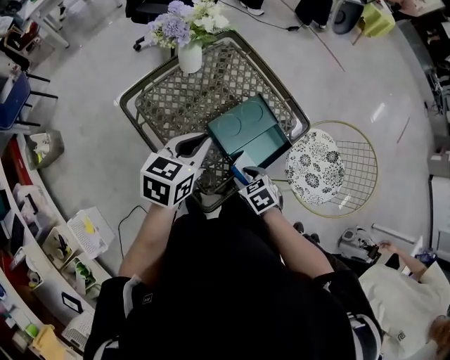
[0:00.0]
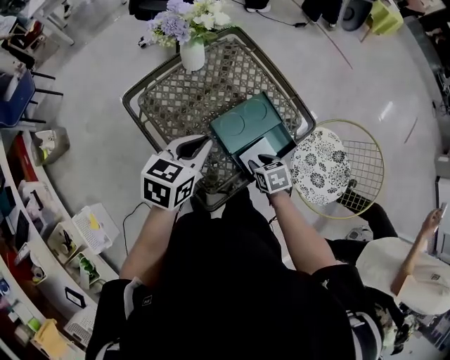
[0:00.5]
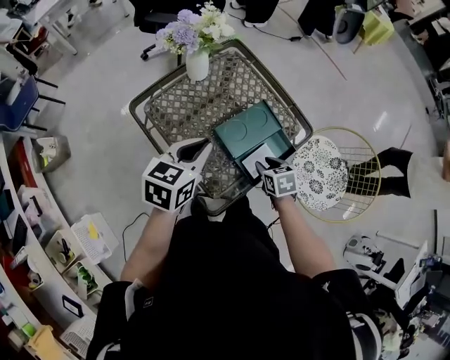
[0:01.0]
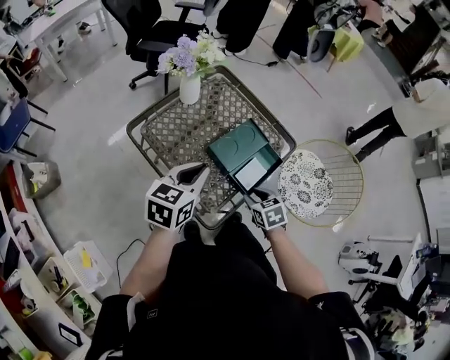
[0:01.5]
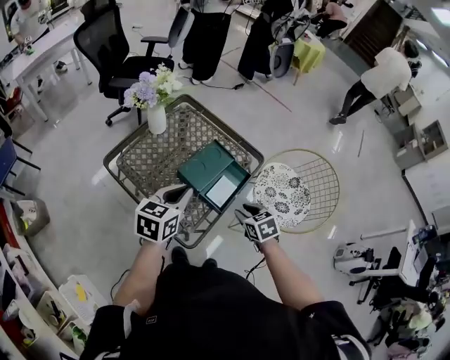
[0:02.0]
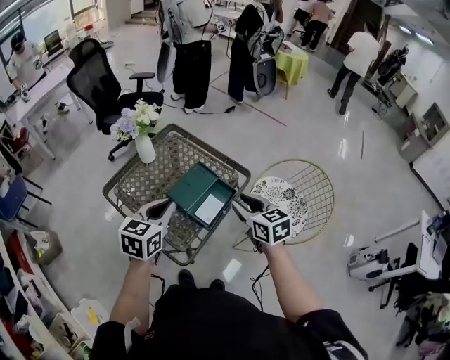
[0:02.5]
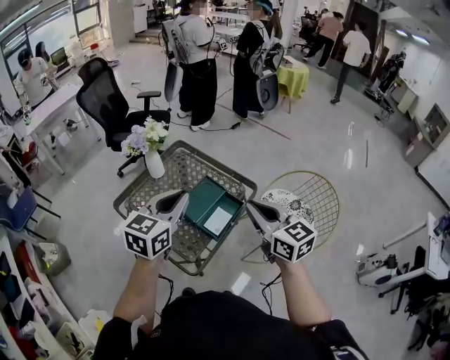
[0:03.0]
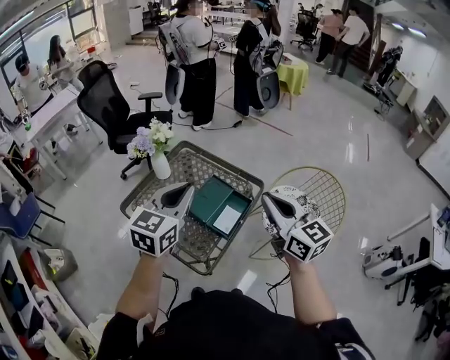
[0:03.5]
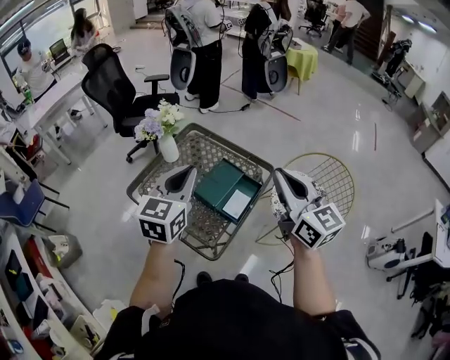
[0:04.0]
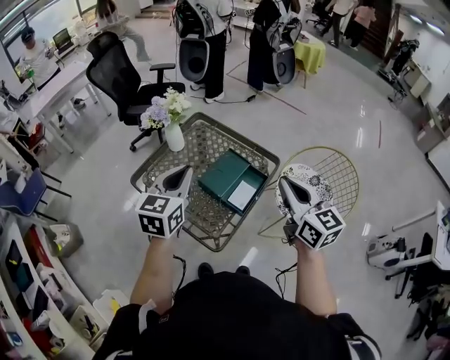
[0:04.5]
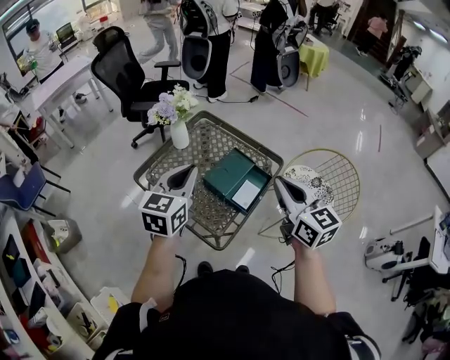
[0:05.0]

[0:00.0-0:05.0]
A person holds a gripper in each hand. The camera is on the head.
0:00.0 to 0:02.5: The left gripper shifts some 10 cm backward, upward and to the right, while the right gripper goes roughly 25 cm upward and to the right, and tilts its fingers about 40 degrees upward.
0:02.5 to 0:05.0: The left gripper goes some 10 cm to the left and upward. The right gripper travels upward and to the left by about 15 cm, turns by about 20 degrees, and closes up.

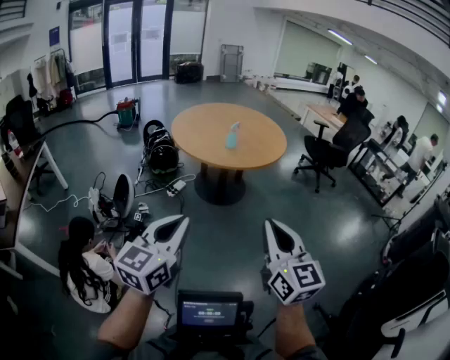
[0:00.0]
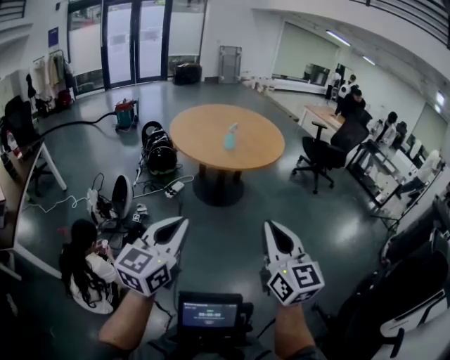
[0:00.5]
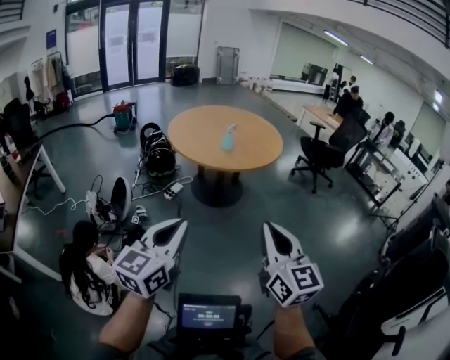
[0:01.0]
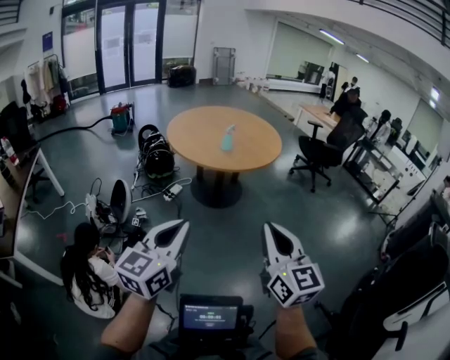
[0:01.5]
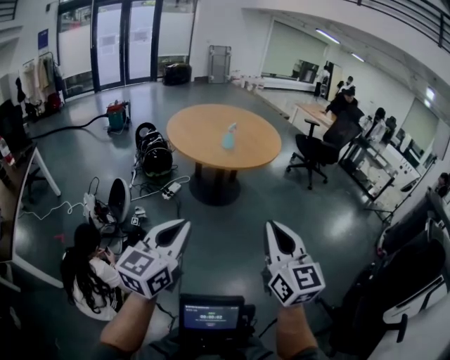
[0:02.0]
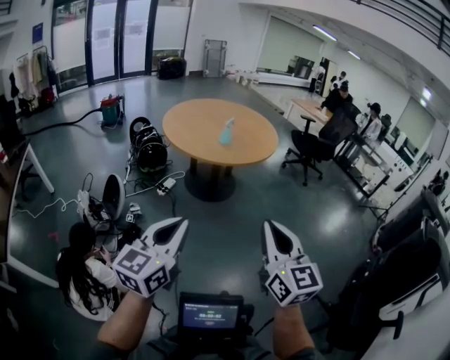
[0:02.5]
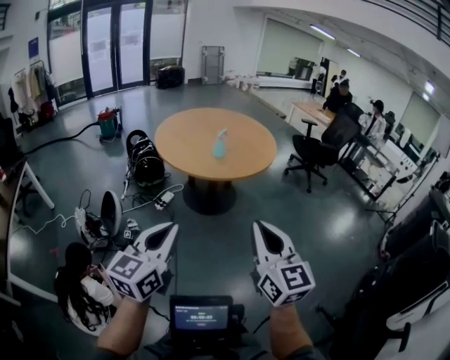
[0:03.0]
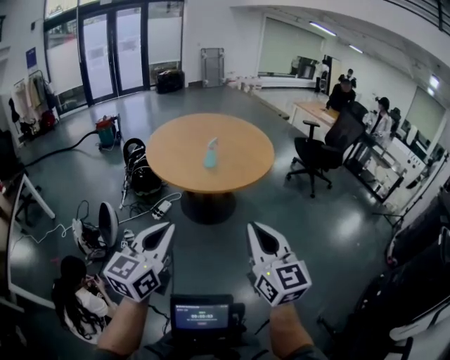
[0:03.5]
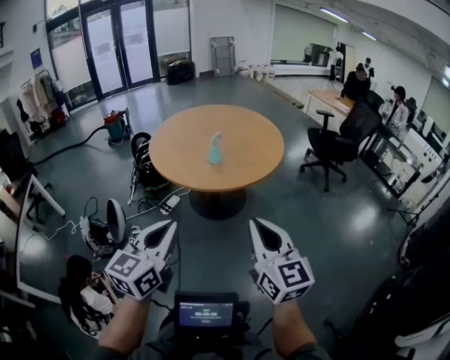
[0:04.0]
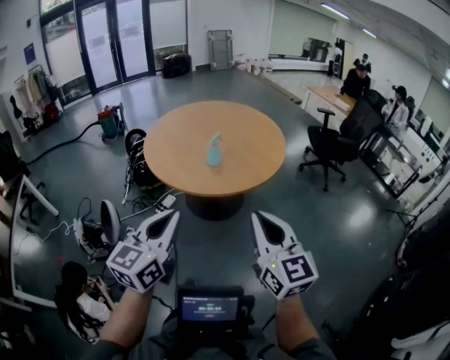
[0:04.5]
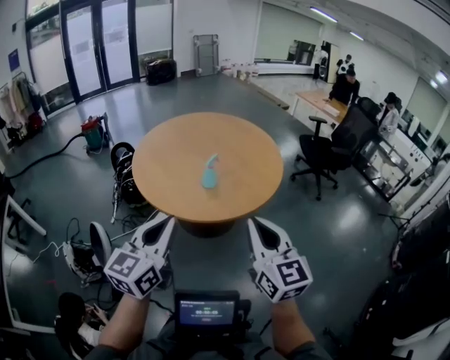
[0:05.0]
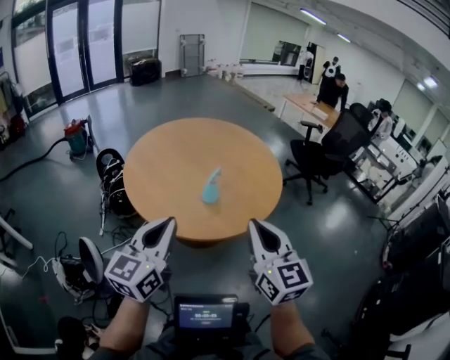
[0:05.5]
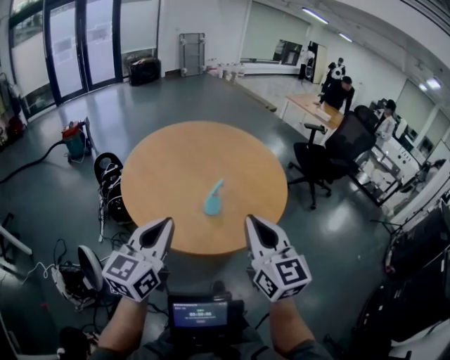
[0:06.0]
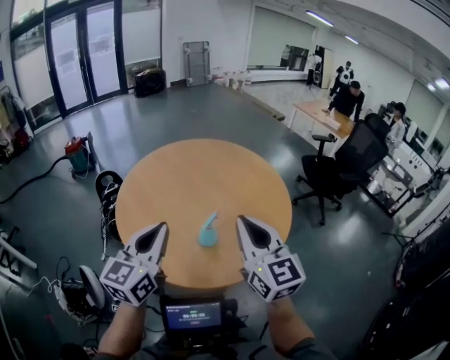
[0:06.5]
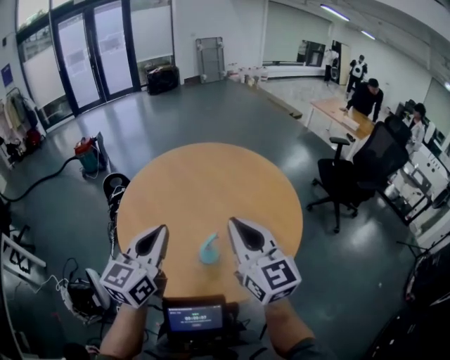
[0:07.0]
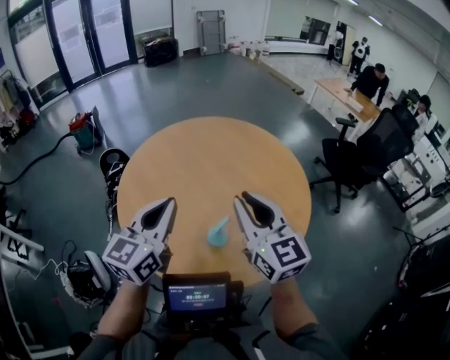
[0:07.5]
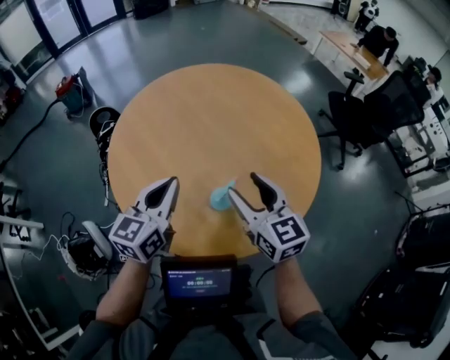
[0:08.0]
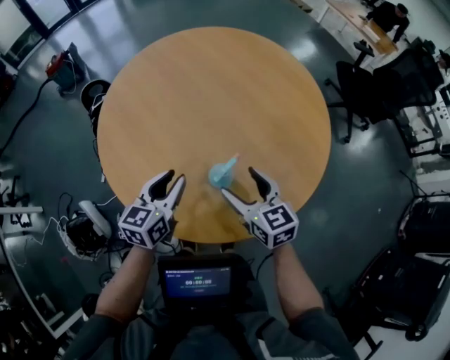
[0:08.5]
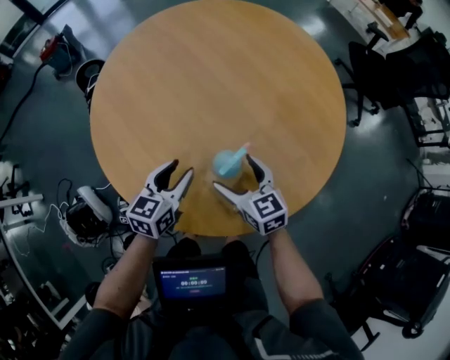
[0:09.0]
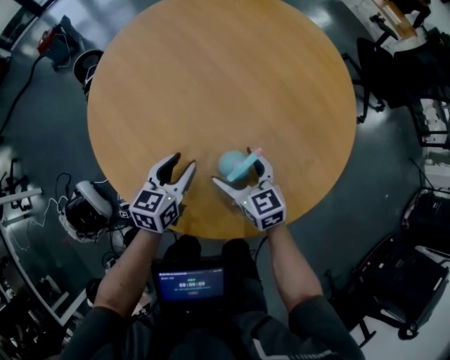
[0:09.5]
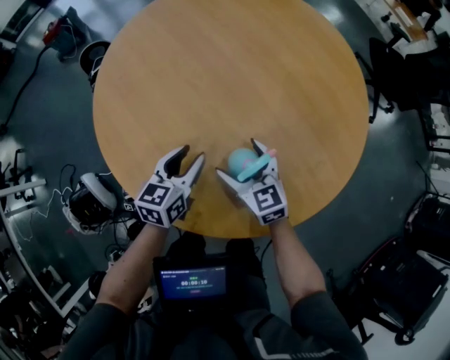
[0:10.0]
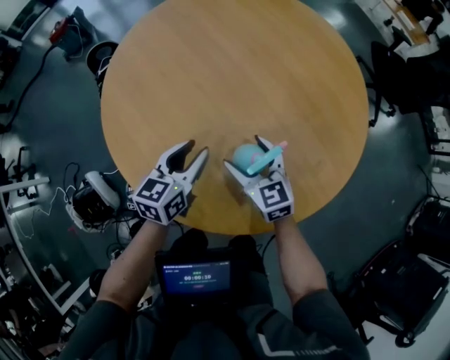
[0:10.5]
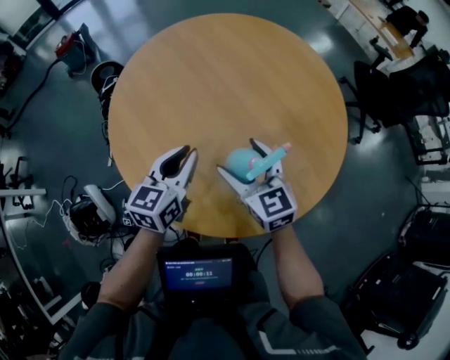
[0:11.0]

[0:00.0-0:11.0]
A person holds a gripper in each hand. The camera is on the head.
0:00.0 to 0:02.0: The grippers make only small movements.
0:02.0 to 0:03.5: The two grippers go roughly 20 cm forward.
0:03.5 to 0:05.5: Both grippers travel together forward, about 35 cm.
0:05.5 to 0:07.5: Both grippers move forward, approximately 30 cm.
0:07.5 to 0:09.0: Both grippers travel together downward, some 30 cm. The right gripper changes its angle by about 30 degrees, and opens up. The left gripper turns by approximately 30 degrees, and opens.
0:09.0 to 0:11.0: The two grippers go about 10 cm upward. The left gripper closes.

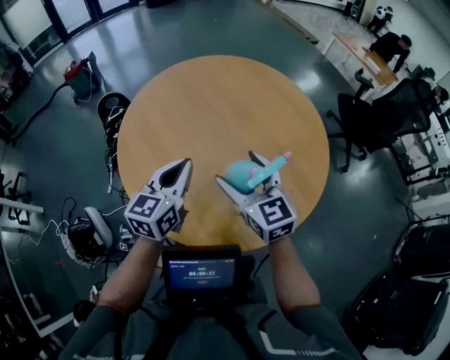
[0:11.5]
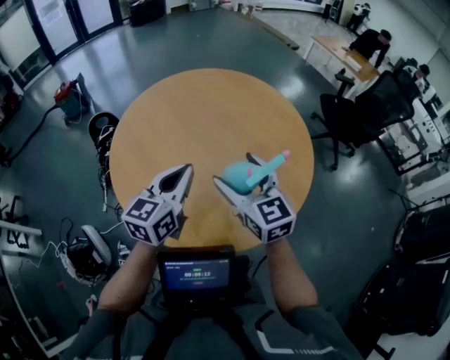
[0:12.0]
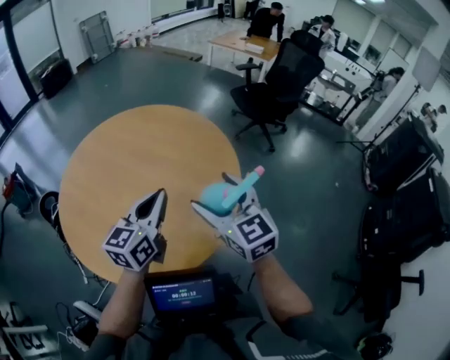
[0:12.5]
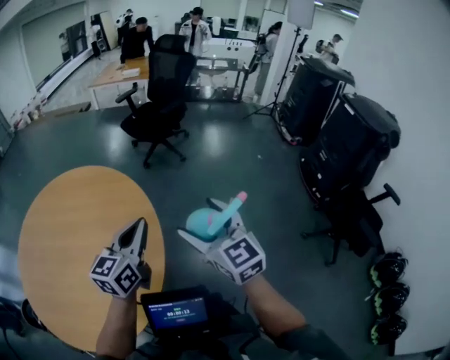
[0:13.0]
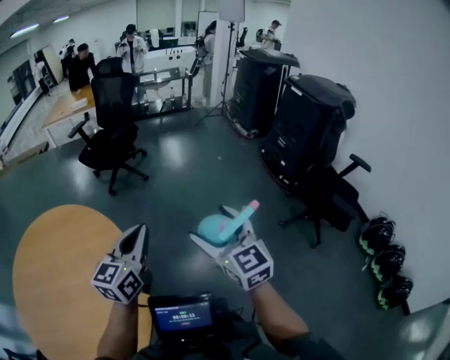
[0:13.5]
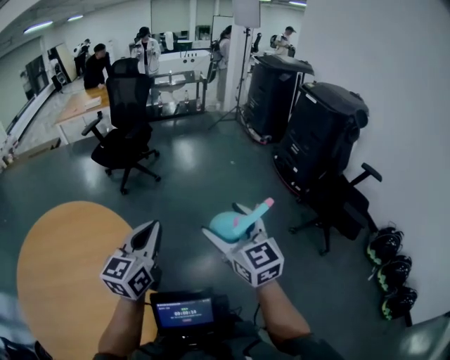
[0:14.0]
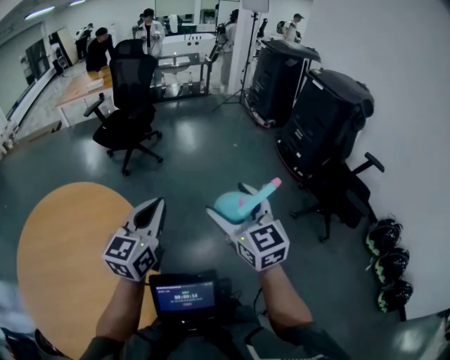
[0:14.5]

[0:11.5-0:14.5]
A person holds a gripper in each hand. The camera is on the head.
0:11.5 to 0:13.0: The left gripper shifts by roughly 40 cm, and swivels some 50 degrees, while the right gripper ends up about 40 cm from where it was, and rotates about 50 degrees.
0:13.0 to 0:14.5: The right gripper goes approximately 15 cm to the right, and rotates approximately 20 degrees. Meanwhile the left gripper travels to the right and forward by roughly 10 cm.

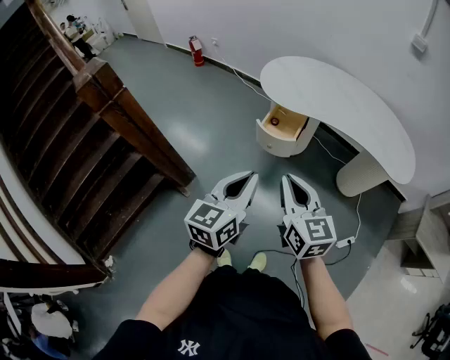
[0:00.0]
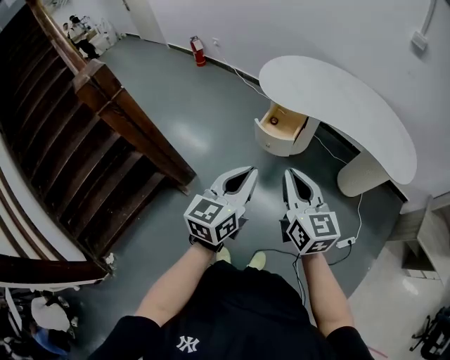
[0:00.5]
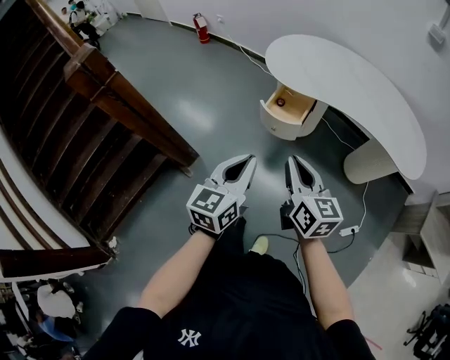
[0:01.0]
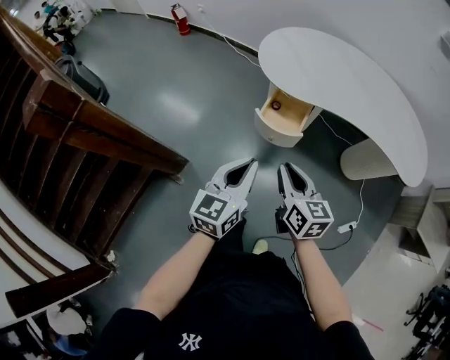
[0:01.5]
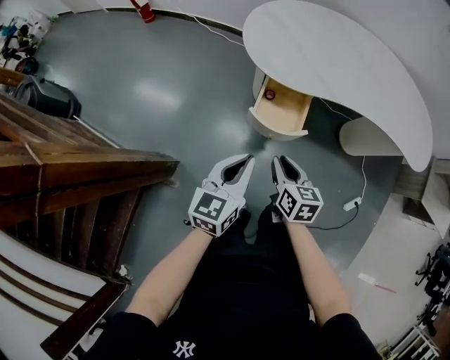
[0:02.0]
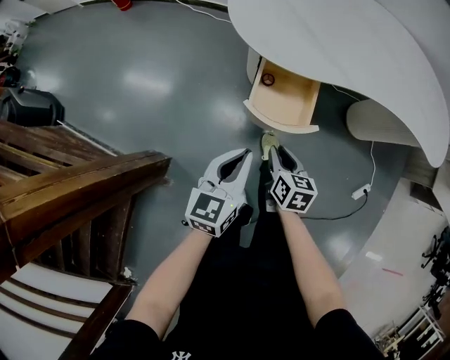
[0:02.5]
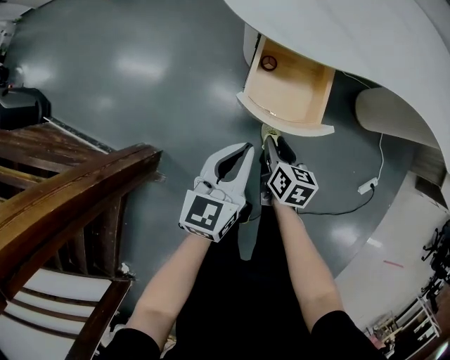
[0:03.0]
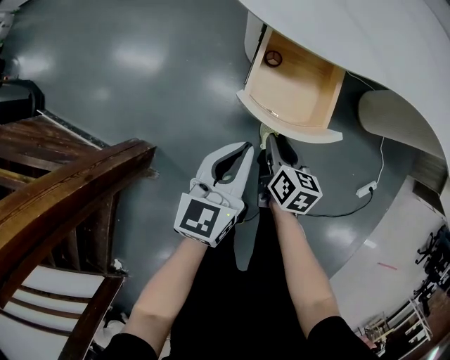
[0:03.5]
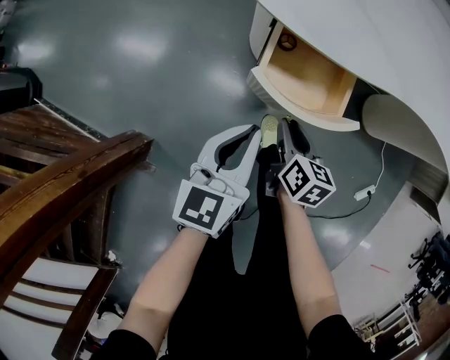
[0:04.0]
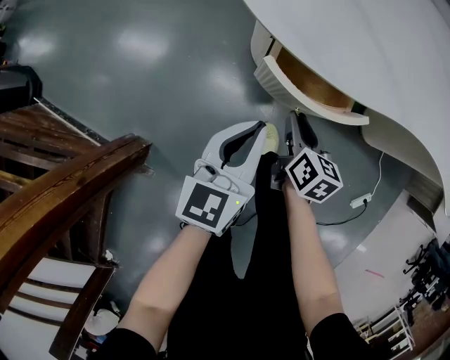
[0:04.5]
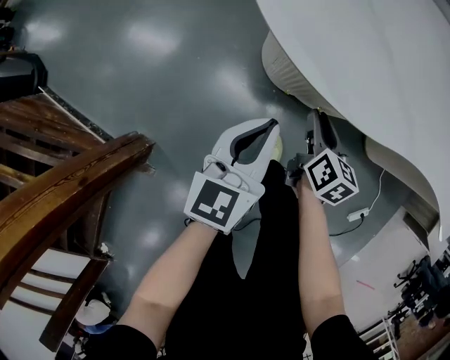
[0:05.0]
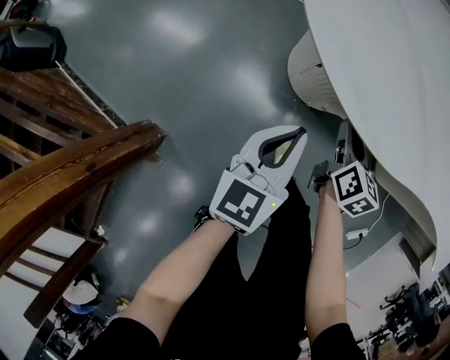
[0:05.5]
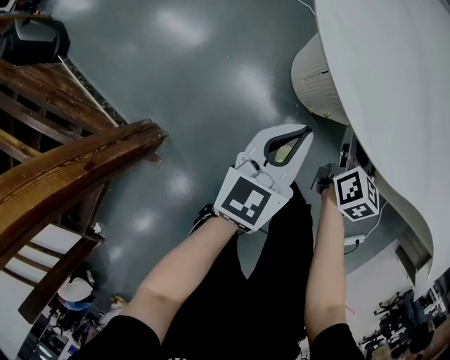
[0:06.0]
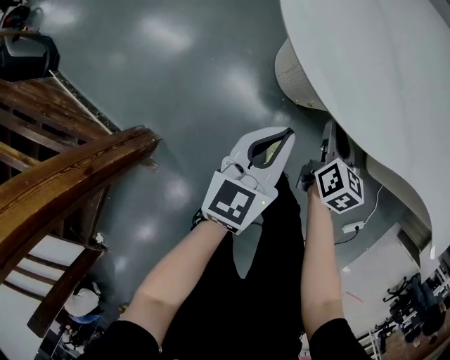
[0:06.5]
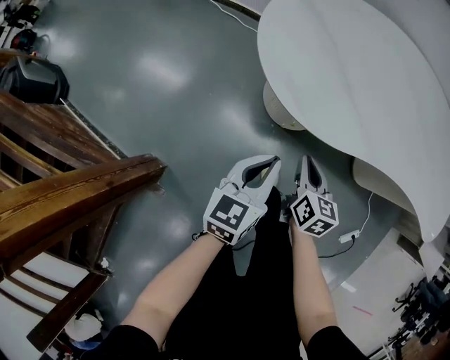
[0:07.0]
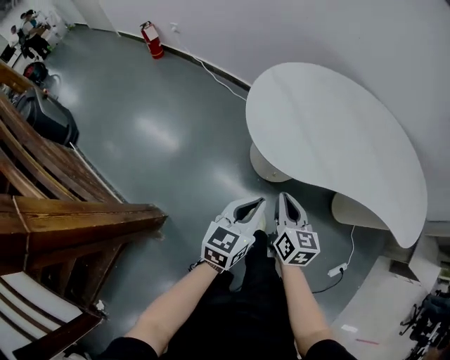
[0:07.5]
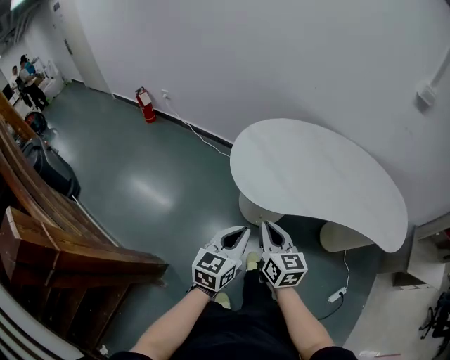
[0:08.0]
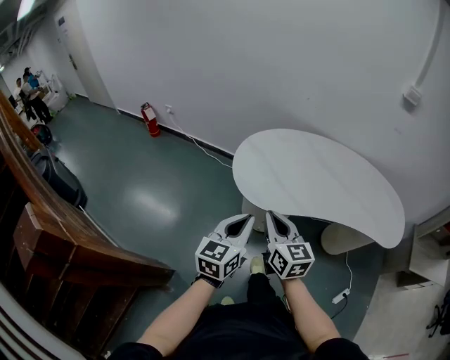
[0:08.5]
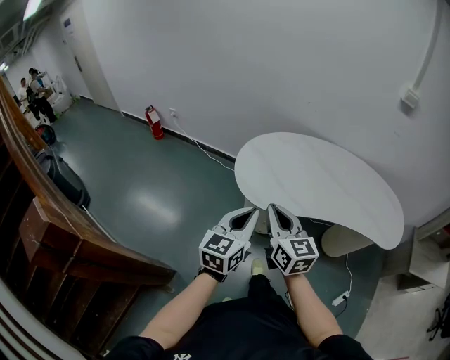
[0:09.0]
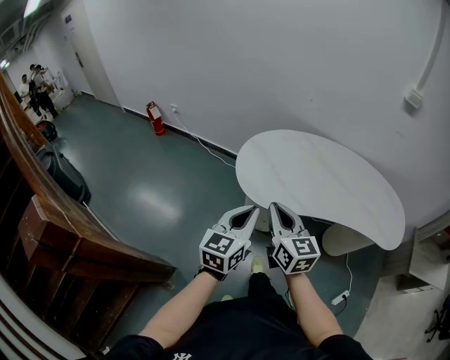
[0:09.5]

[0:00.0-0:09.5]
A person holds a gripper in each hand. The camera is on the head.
0:00.0 to 0:02.0: The left gripper shifts about 35 cm forward and downward; the right gripper heads downward and forward, covering approximately 40 cm, and changes its angle by about 40 degrees.
0:02.0 to 0:04.0: Both grippers travel together downward and forward, approximately 30 cm.
0:04.0 to 0:05.5: The two grippers go approximately 15 cm forward.
0:05.5 to 0:07.5: Both grippers move upward and backward, roughly 25 cm. The right gripper closes.
0:07.5 to 0:09.5: Both grippers travel together upward, some 25 cm. The right gripper swivels some 20 degrees.
